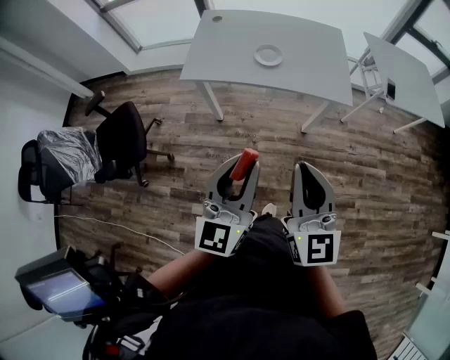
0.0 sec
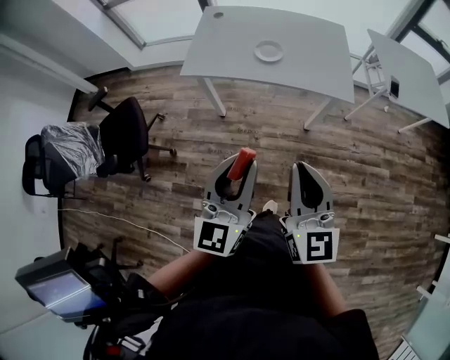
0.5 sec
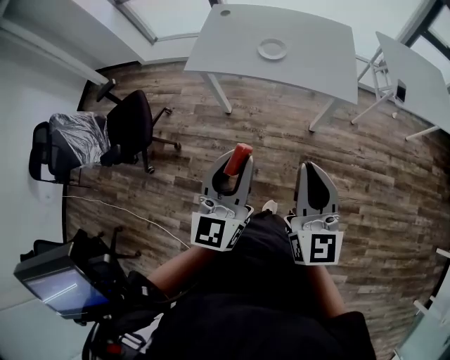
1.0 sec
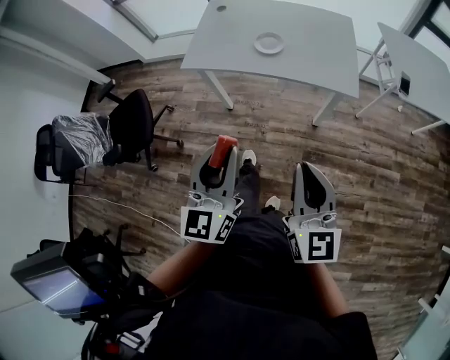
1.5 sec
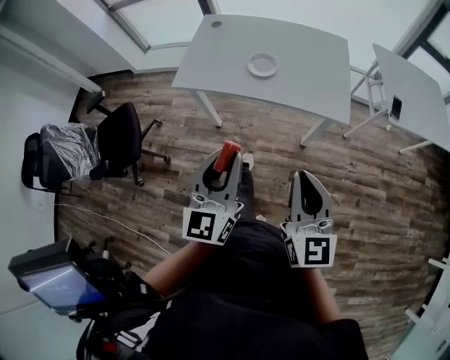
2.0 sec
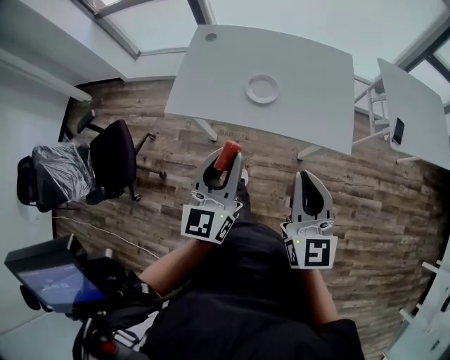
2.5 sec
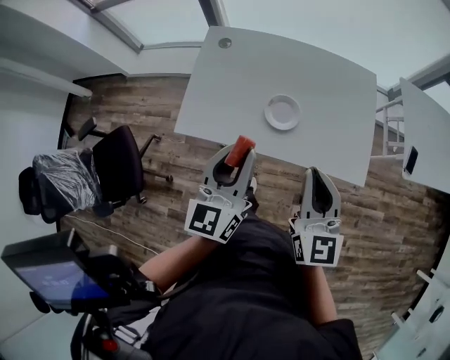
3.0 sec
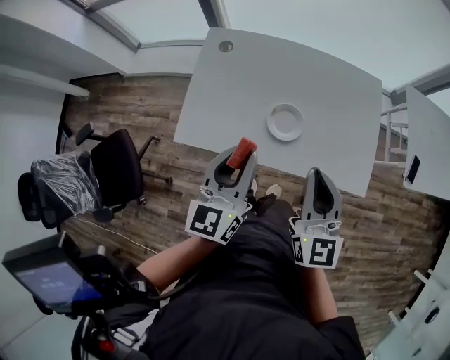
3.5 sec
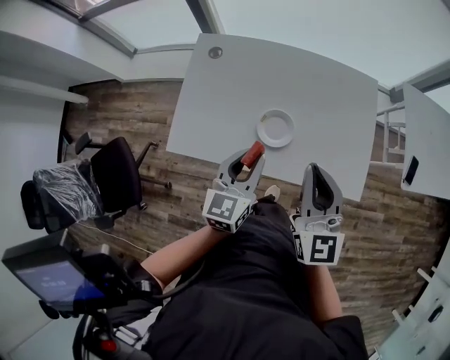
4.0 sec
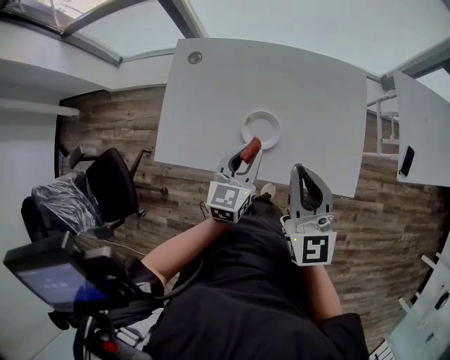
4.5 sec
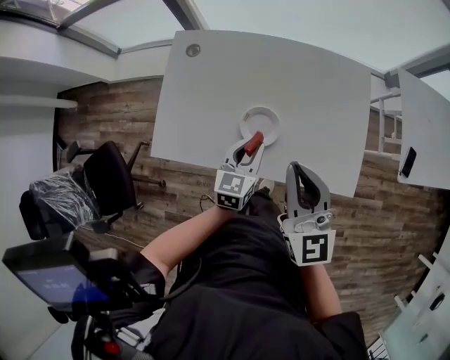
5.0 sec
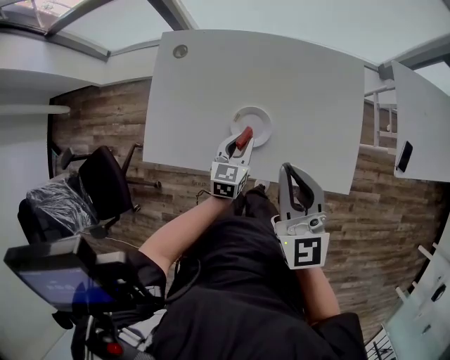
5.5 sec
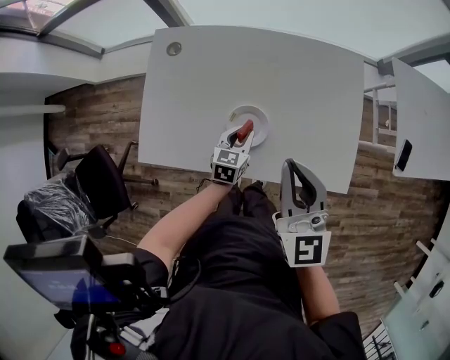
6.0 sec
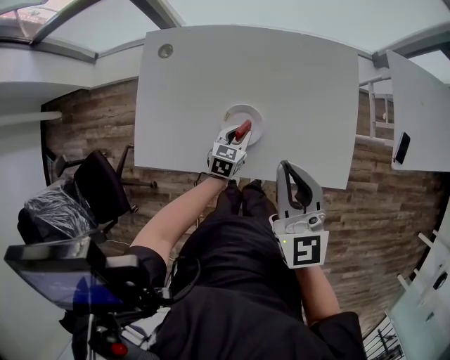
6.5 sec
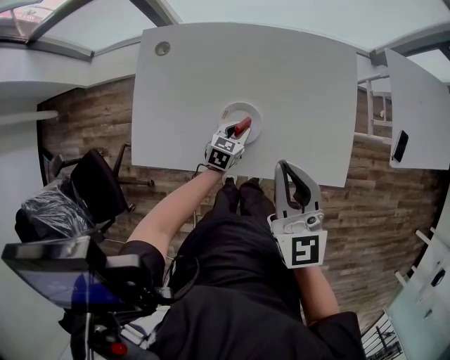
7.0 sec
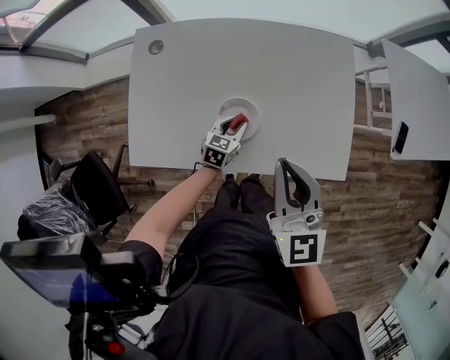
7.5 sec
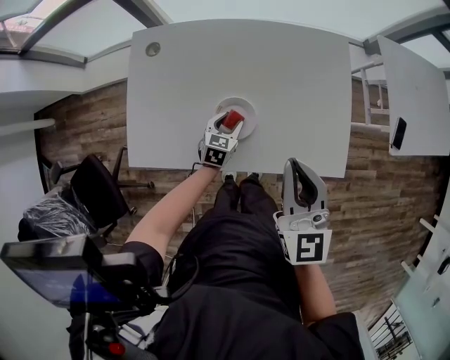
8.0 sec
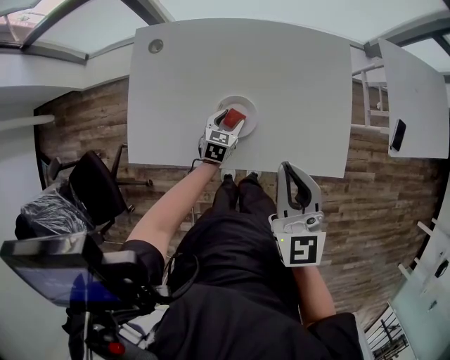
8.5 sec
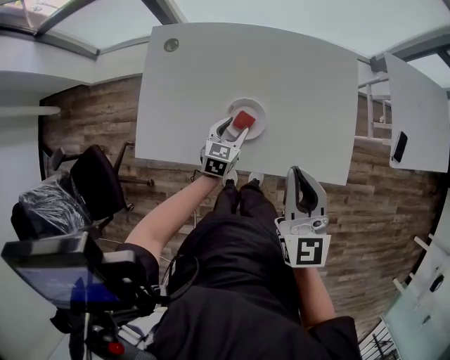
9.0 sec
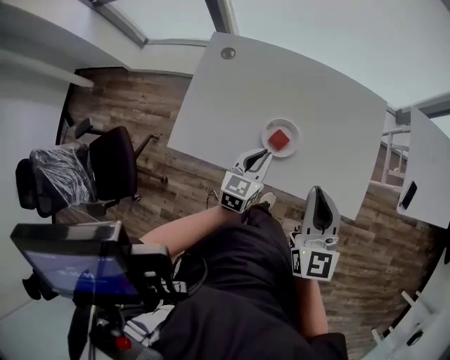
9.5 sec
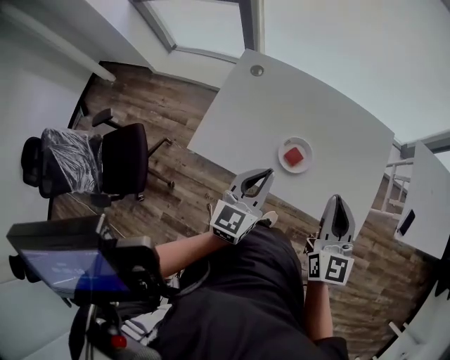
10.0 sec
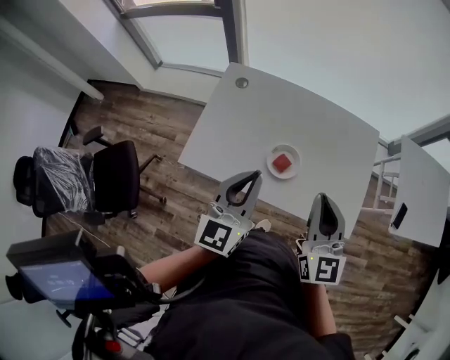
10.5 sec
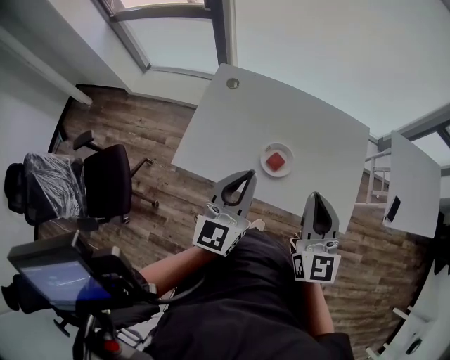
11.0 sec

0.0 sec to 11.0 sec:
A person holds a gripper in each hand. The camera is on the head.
0.0 sec to 2.0 sec: The left gripper travels forward and to the right by roughly 10 cm. The right gripper moves to the right, forward and downward, approximately 15 cm.
2.0 sec to 3.5 sec: The two grippers go some 35 cm forward.
3.5 sec to 5.5 sec: The left gripper travels downward, forward and to the right by about 30 cm, and turns by about 30 degrees. Meanwhile the right gripper is displaced forward by some 10 cm.
5.5 sec to 7.5 sec: The left gripper moves downward, about 10 cm.
7.5 sec to 9.0 sec: The left gripper opens its fingers.
9.0 sec to 11.0 sec: The right gripper moves upward, backward and to the left, some 10 cm, while the left gripper is displaced upward and backward by about 35 cm, points its fingers some 40 degrees further upward, and closes up.

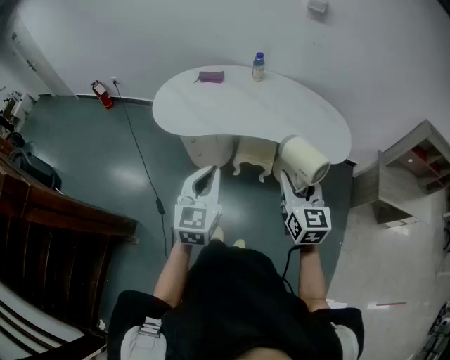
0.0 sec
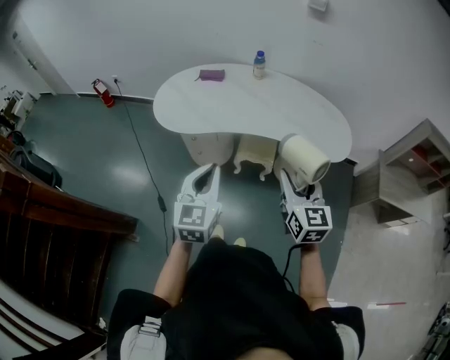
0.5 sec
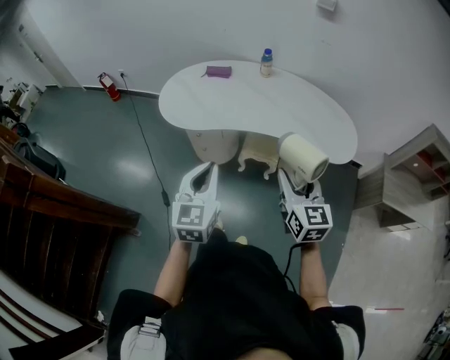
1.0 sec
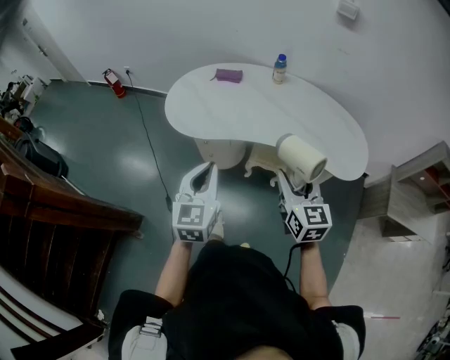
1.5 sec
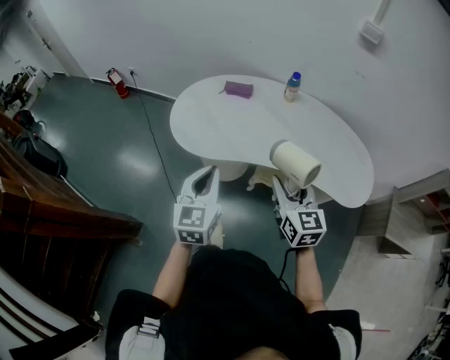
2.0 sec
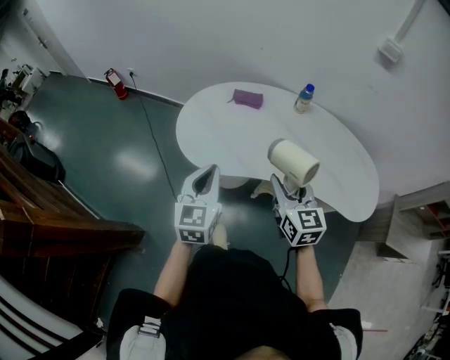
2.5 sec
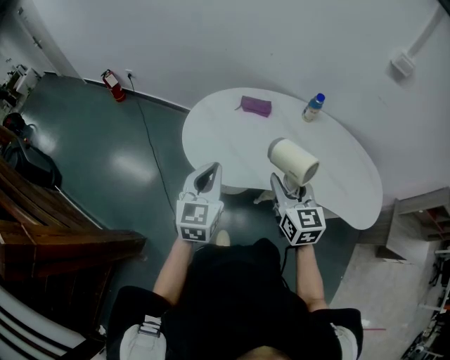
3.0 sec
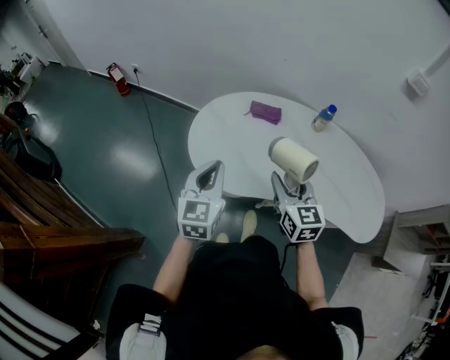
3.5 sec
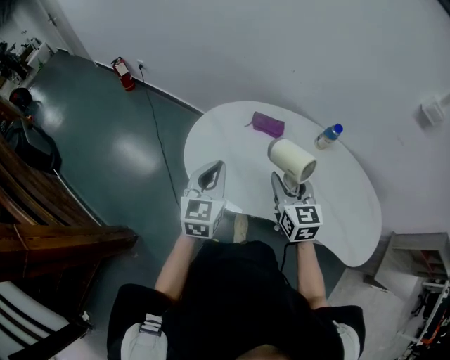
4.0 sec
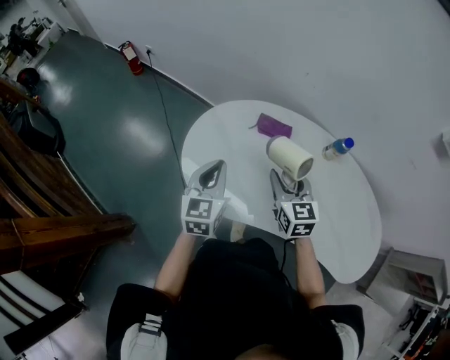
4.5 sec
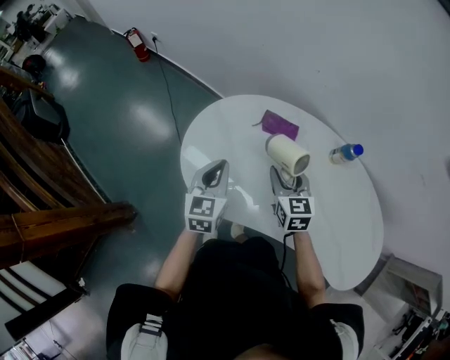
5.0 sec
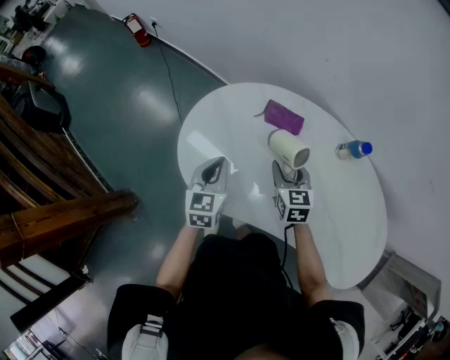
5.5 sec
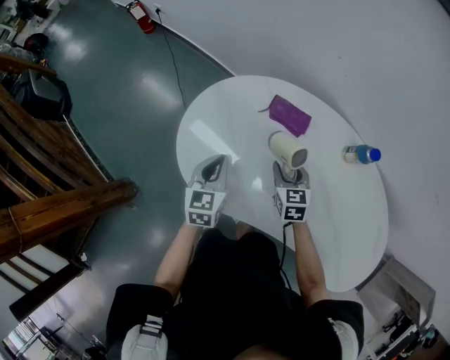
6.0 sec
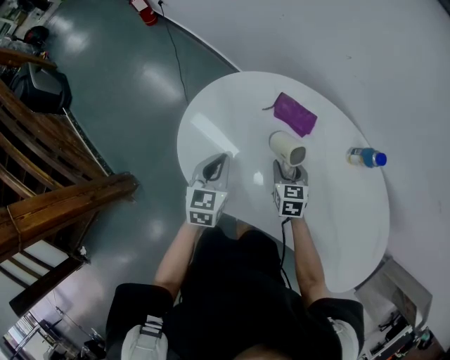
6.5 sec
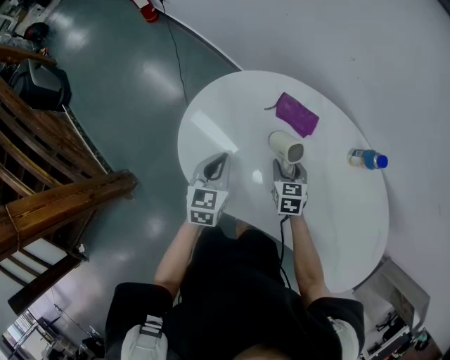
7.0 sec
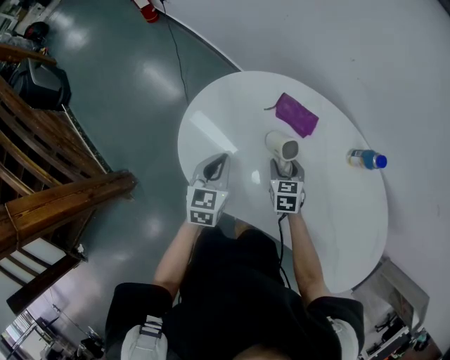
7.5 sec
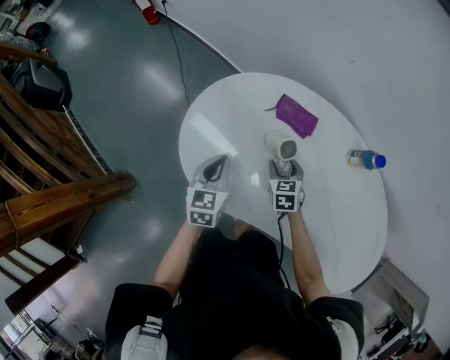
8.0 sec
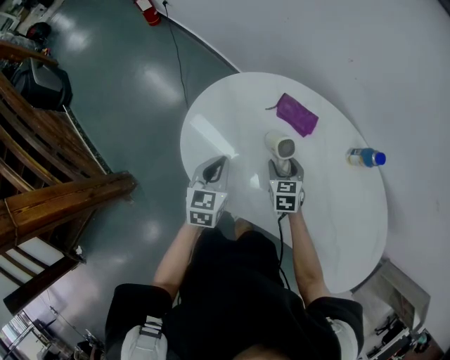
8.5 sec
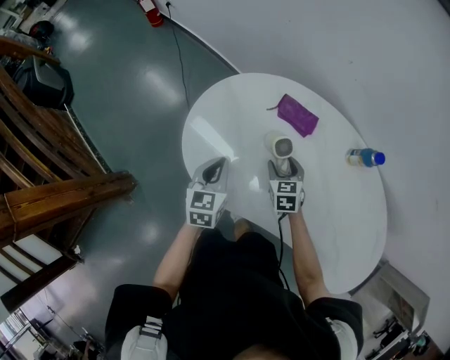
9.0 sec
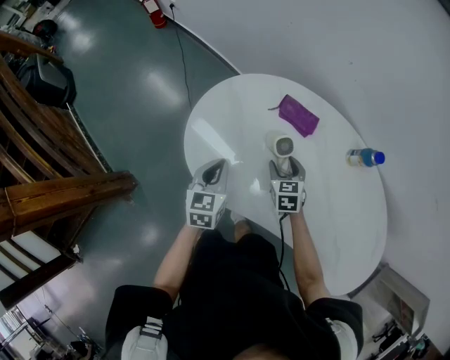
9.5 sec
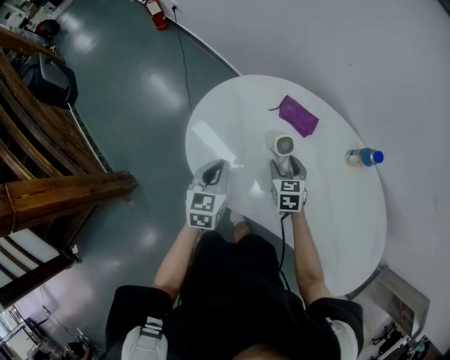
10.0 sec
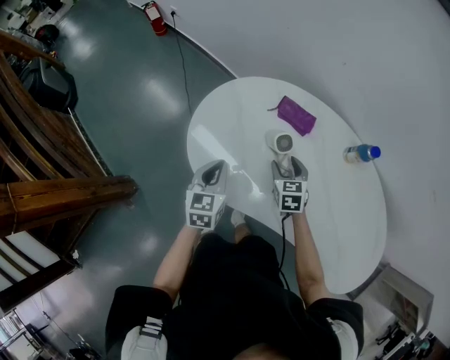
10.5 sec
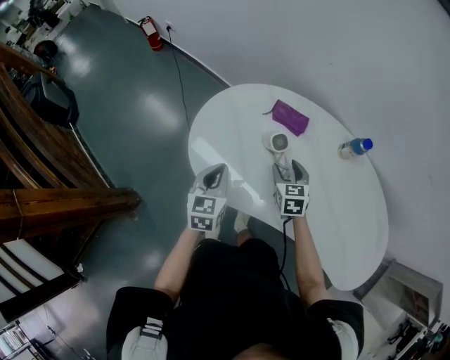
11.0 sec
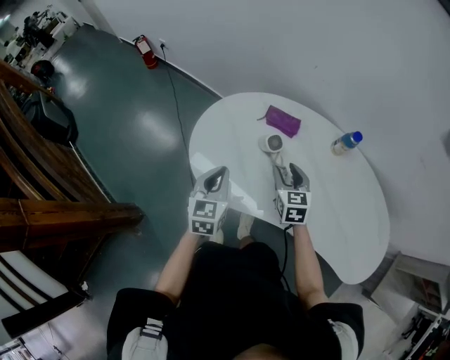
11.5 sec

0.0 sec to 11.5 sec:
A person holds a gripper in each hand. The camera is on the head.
0.0 sec to 2.0 sec: Both grippers travel together forward and to the left, approximately 20 cm.
2.0 sec to 4.0 sec: The grippers both shift forward and to the left by some 30 cm.
4.0 sec to 6.0 sec: Both grippers travel together downward and forward, some 25 cm. The left gripper changes its angle by roughly 20 degrees. Meanwhile the right gripper swivels some 20 degrees.
6.0 sec to 7.5 sec: The right gripper goes roughly 5 cm downward.
7.5 sec to 9.5 sec: The grippers stay close to where they were, moving slightly.
9.5 sec to 11.5 sec: Both grippers travel together upward and backward, about 15 cm.

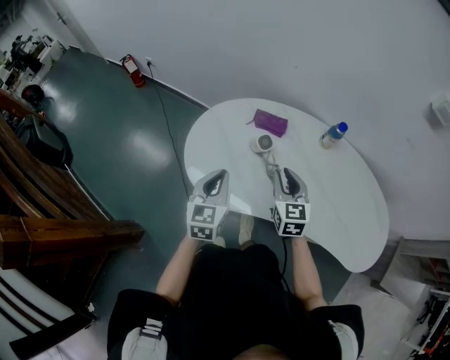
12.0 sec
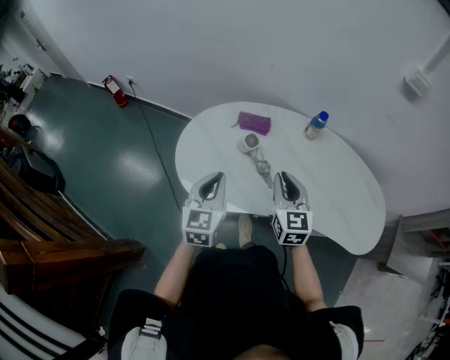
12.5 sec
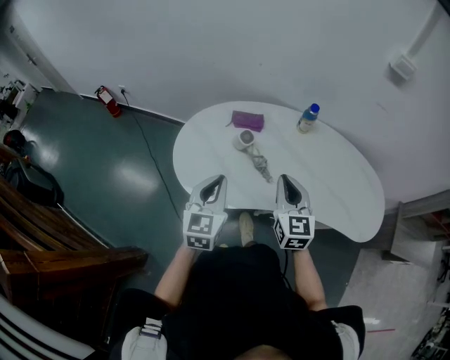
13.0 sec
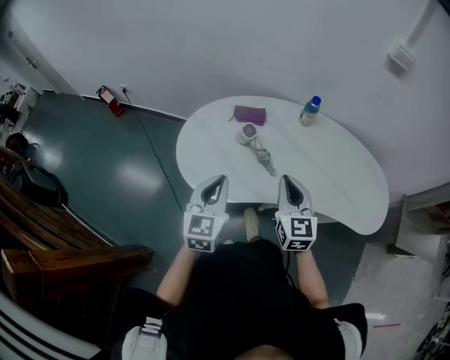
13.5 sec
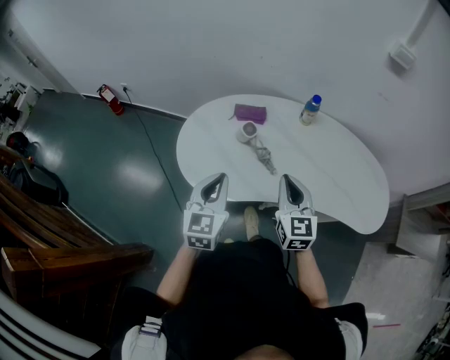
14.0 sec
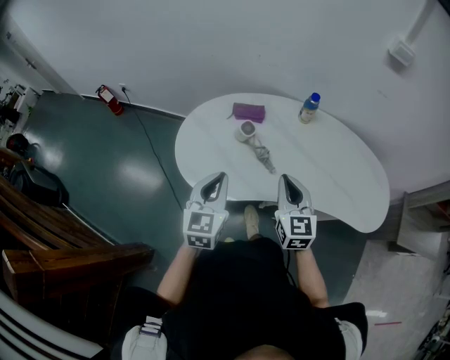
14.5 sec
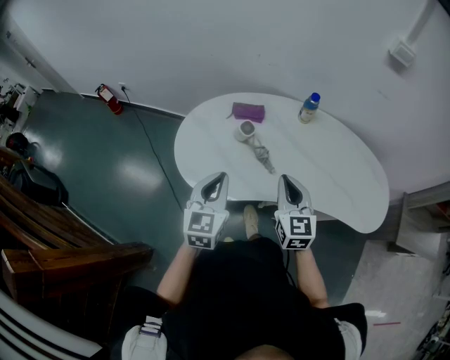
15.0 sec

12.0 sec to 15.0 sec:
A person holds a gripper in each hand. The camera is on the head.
12.0 sec to 13.5 sec: The left gripper moves backward and upward, approximately 10 cm. Meanwhile the right gripper shifts about 15 cm backward and upward, and closes its fingers.
13.5 sec to 15.0 sec: Both grippers stay put.

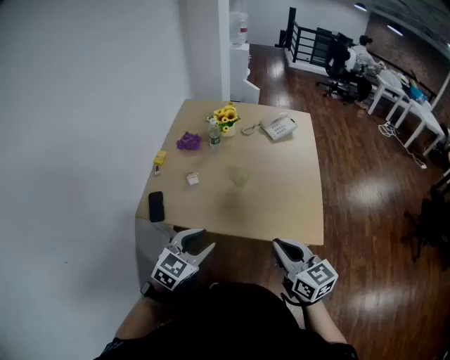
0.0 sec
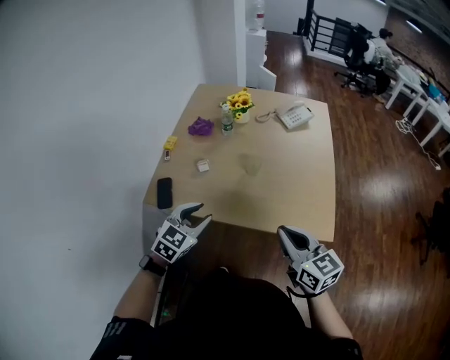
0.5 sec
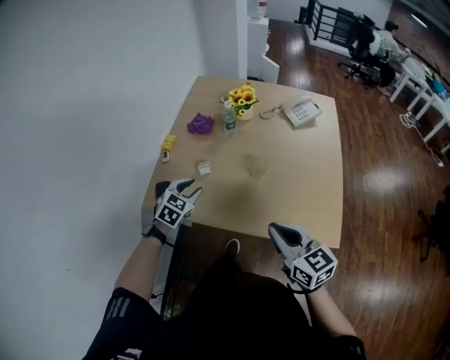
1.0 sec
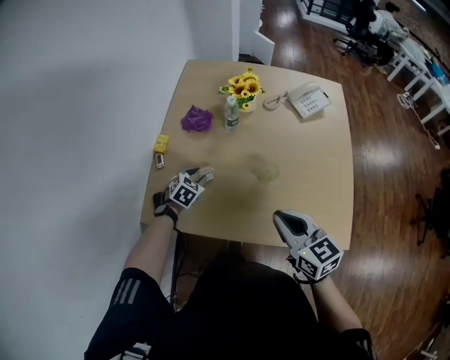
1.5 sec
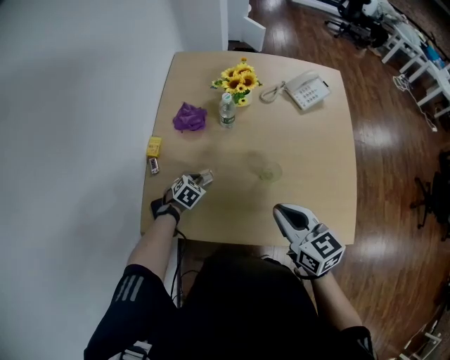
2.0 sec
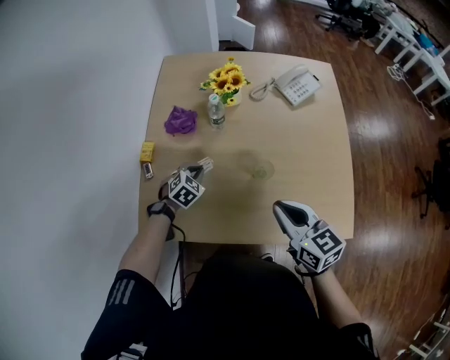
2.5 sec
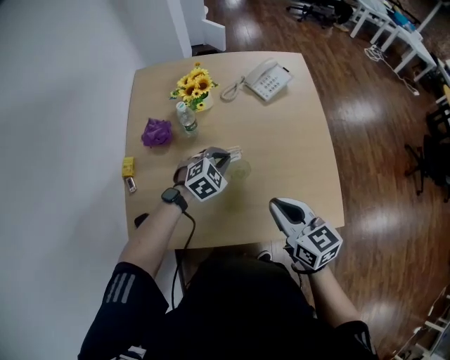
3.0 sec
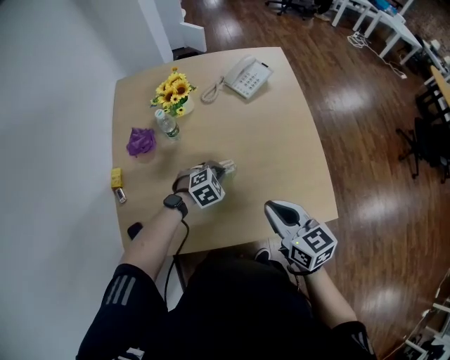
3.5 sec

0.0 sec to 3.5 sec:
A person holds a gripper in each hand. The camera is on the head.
0.0 sec to 2.0 sec: The right gripper heads forward, covering approximately 25 cm. Meanwhile the left gripper moves forward and downward, some 50 cm, tilts its fingers about 30 degrees downward, and closes up.
2.0 sec to 3.5 sec: The left gripper travels to the right by roughly 25 cm, and changes its angle by about 40 degrees, while the right gripper moves to the right, approximately 10 cm.
